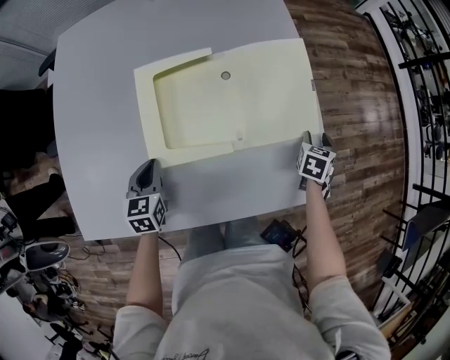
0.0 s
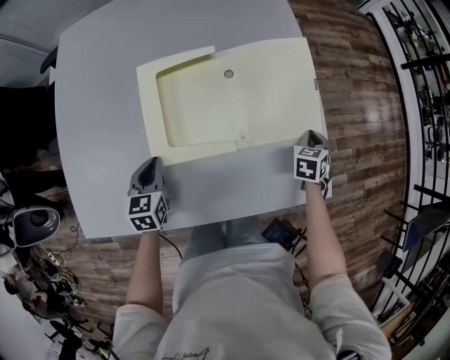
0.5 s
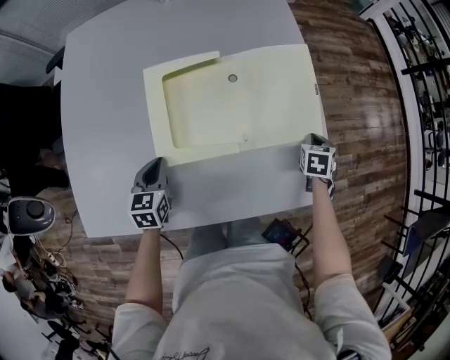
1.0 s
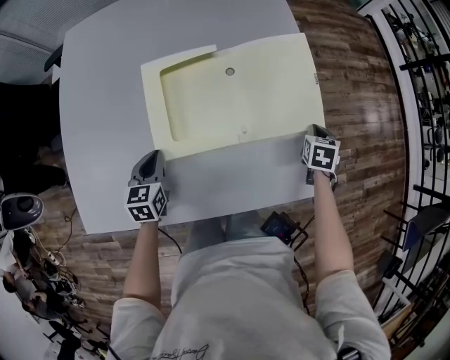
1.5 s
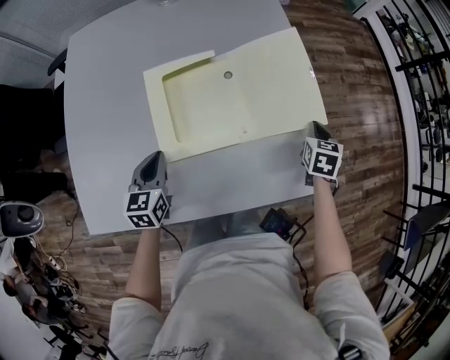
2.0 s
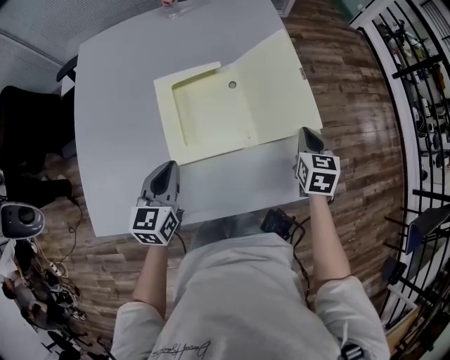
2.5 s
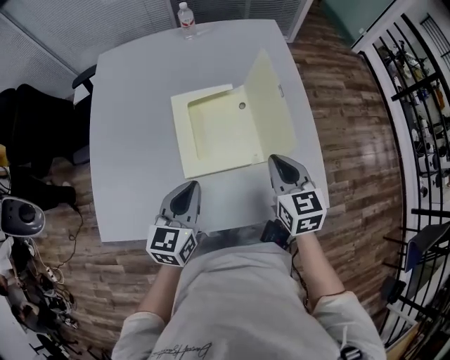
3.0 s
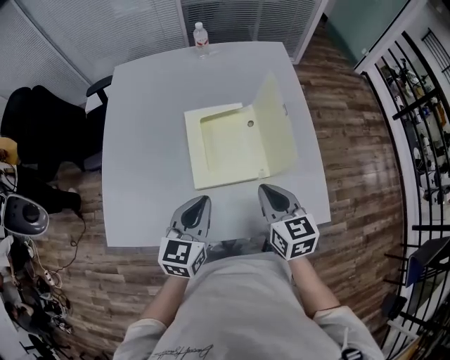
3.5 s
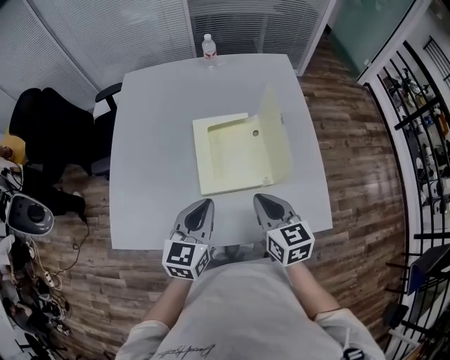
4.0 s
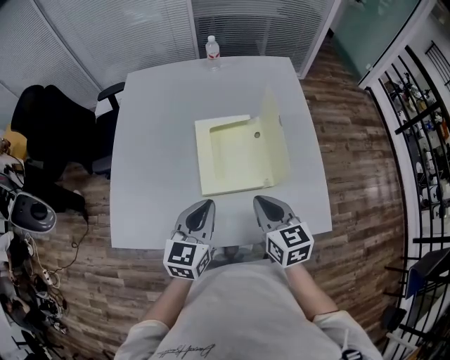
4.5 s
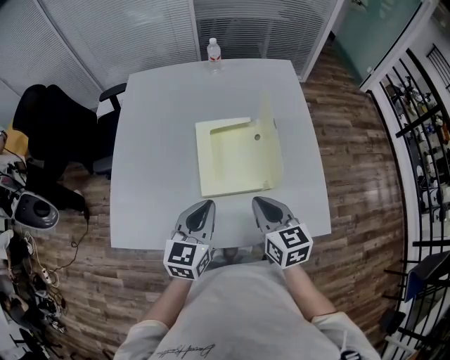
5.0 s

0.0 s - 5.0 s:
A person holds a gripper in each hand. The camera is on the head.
0.0 s - 2.5 s: The left gripper heads upward, covering approximately 10 cm; the right gripper heads upward and to the left, covering some 15 cm, changes its angle by some 20 degrees, and closes.
2.5 s - 5.0 s: The right gripper shifts about 20 cm to the left, and swivels approximately 30 degrees, while the left gripper moves upward, roughly 10 cm.

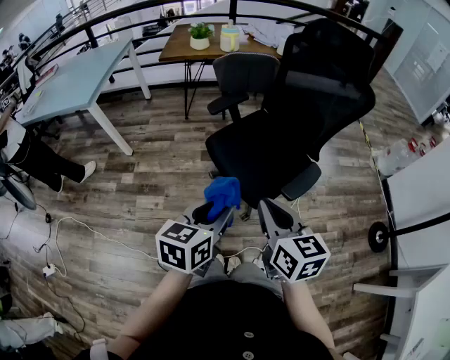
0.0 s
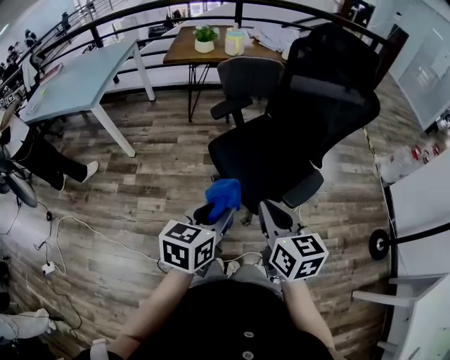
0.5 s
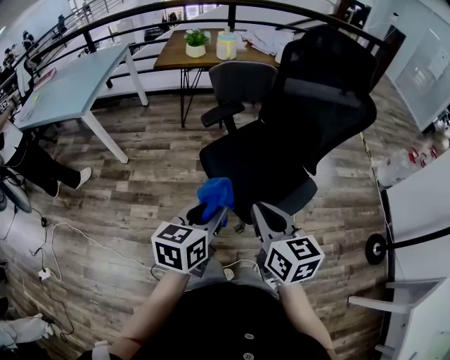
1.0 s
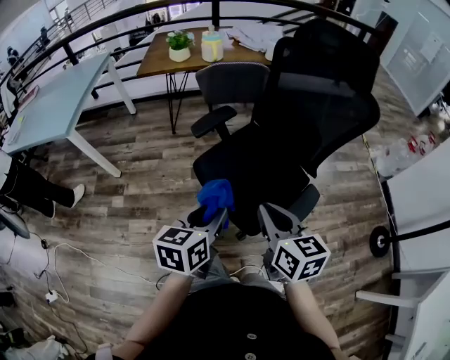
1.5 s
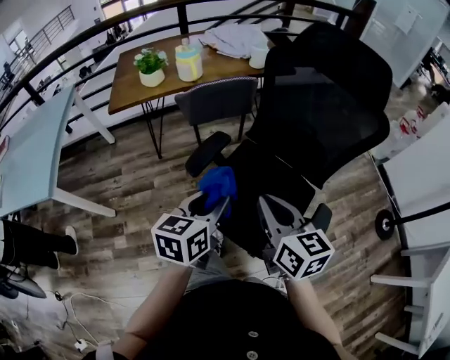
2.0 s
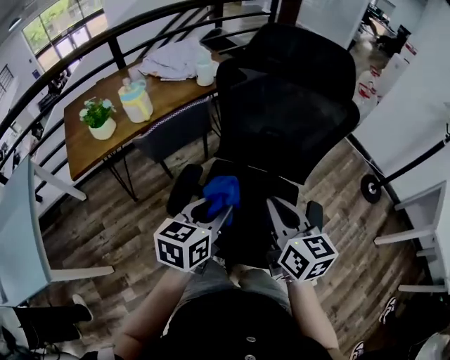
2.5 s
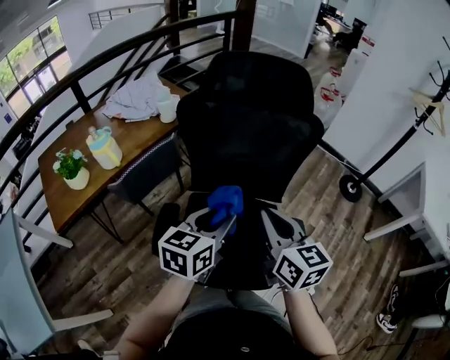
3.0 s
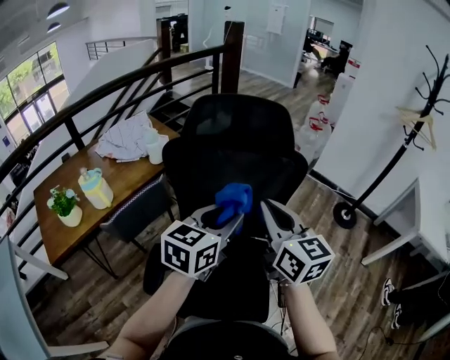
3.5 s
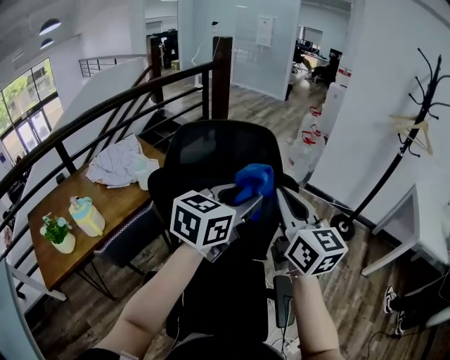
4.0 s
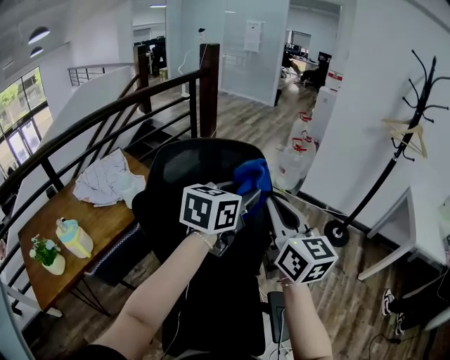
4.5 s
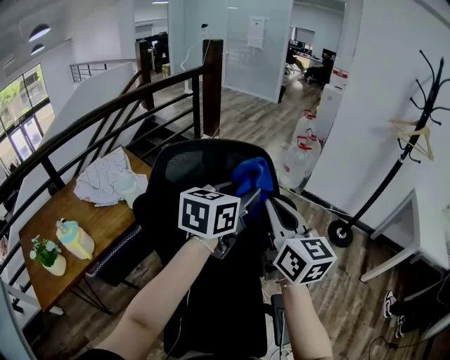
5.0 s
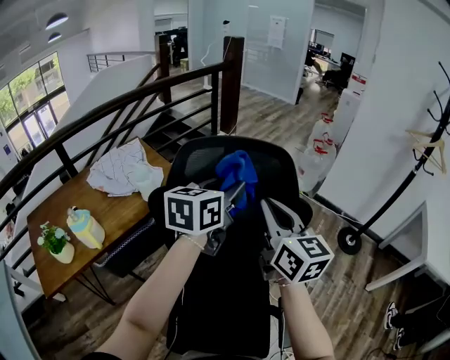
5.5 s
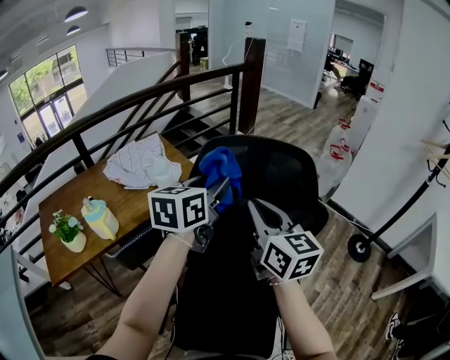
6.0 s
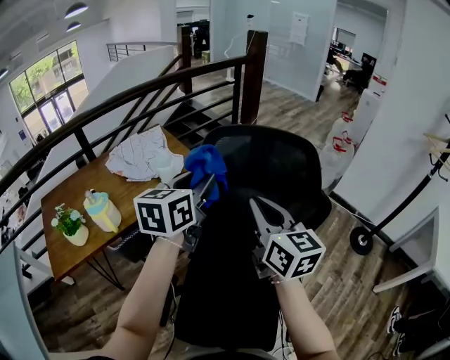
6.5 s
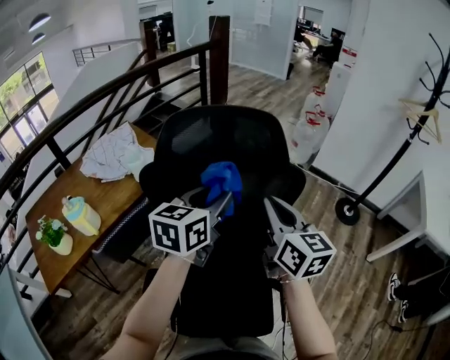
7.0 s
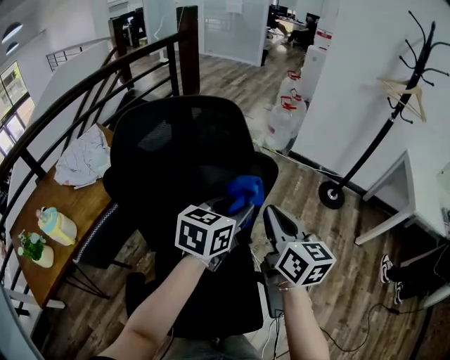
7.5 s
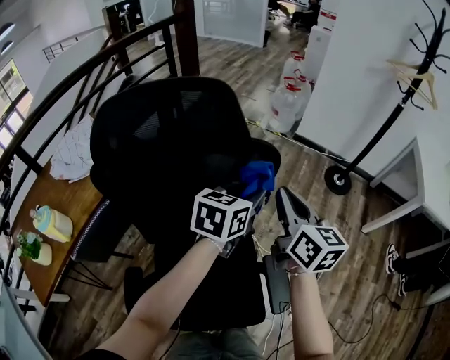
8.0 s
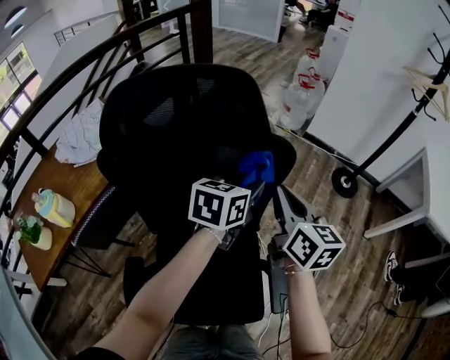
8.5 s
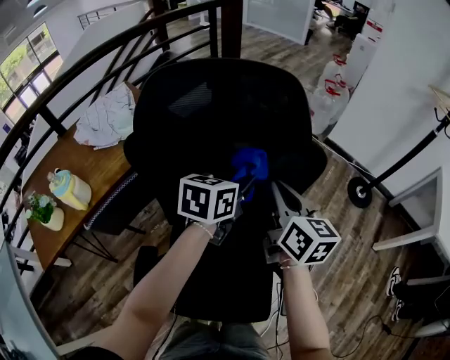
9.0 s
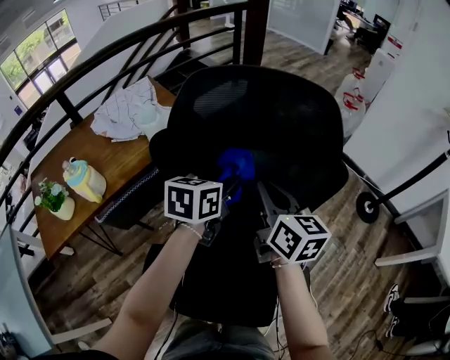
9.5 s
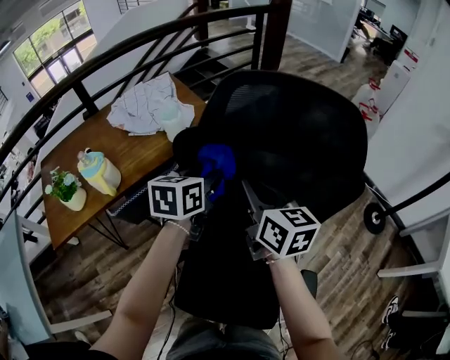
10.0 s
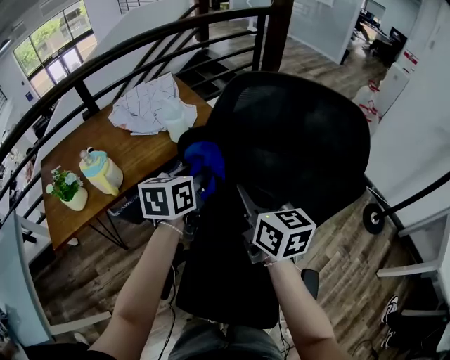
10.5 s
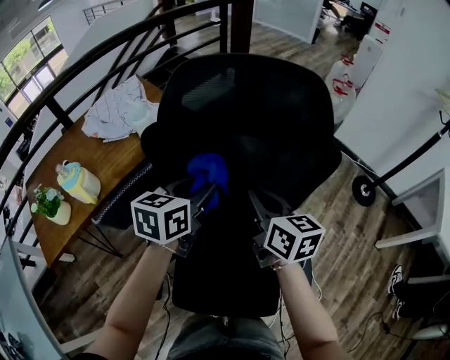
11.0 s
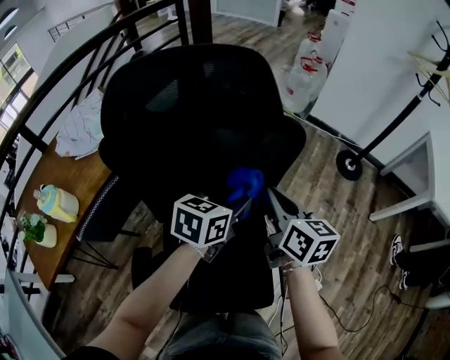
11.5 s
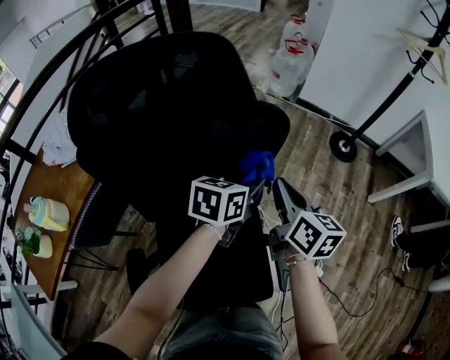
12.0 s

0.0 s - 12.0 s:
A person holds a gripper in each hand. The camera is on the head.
0.0 s - 2.0 s: Both grippers travel together forward, about 35 cm.
2.0 s - 4.0 s: The right gripper shifts by approximately 40 cm, and turns by approximately 50 degrees. Meanwhile the left gripper changes place by about 40 cm, and swivels some 60 degrees.
4.0 s - 6.0 s: The right gripper heads to the left, covering some 15 cm, while the left gripper is displaced to the left and forward by about 20 cm, and swivels approximately 30 degrees.
6.0 s - 8.0 s: The right gripper shifts by about 30 cm, and changes its angle by approximately 30 degrees; the left gripper changes place by some 35 cm, and turns by approximately 30 degrees.
8.0 s - 10.0 s: The right gripper changes place by approximately 30 cm, and swivels some 30 degrees. Meanwhile the left gripper moves approximately 35 cm, and turns by roughly 30 degrees.
10.0 s - 12.0 s: The right gripper shifts by approximately 30 cm, and changes its angle by about 40 degrees, while the left gripper changes place by about 35 cm, and rotates about 40 degrees.

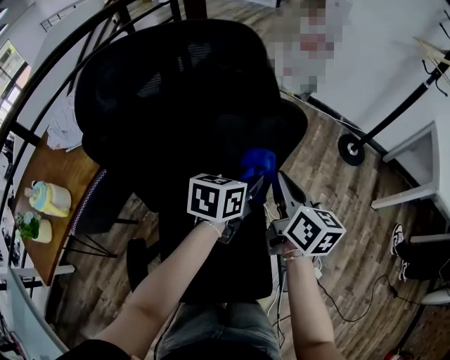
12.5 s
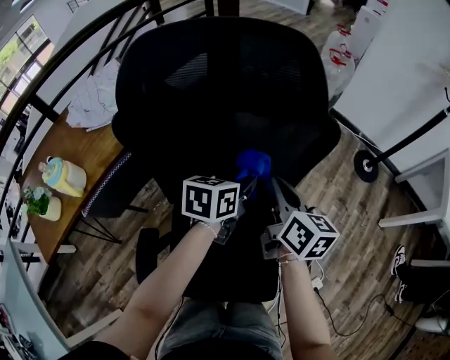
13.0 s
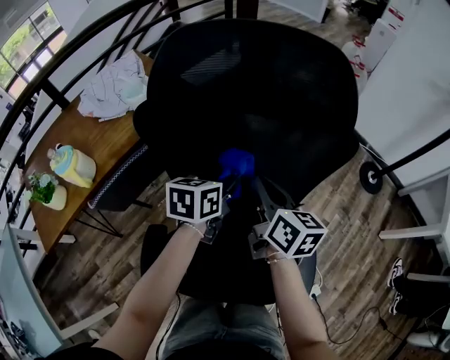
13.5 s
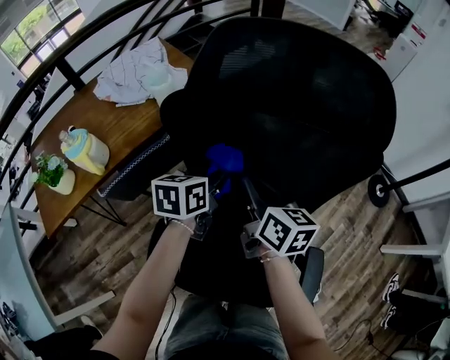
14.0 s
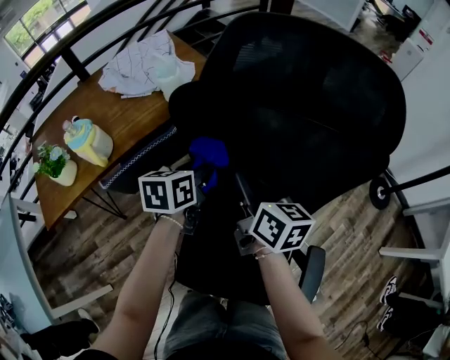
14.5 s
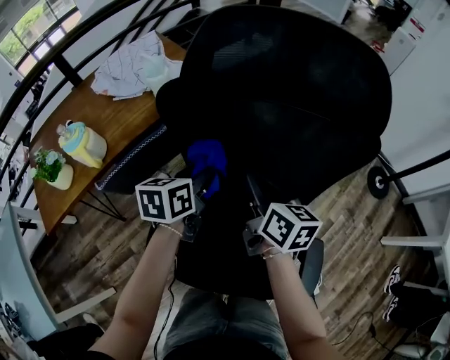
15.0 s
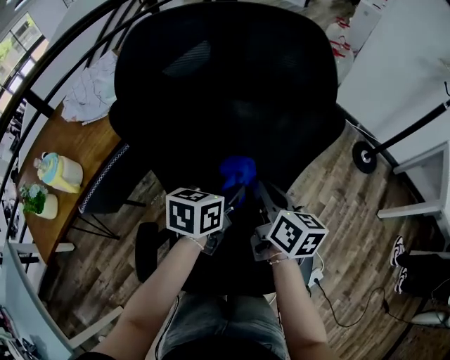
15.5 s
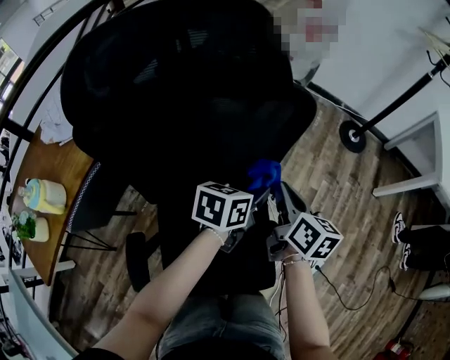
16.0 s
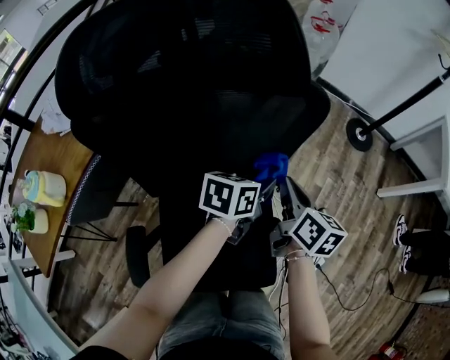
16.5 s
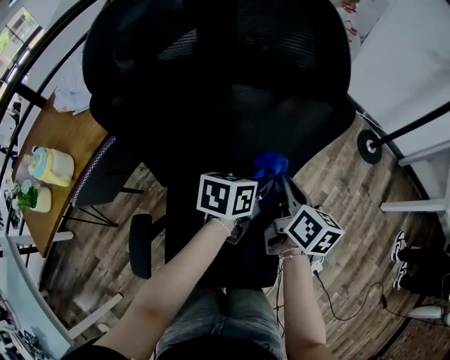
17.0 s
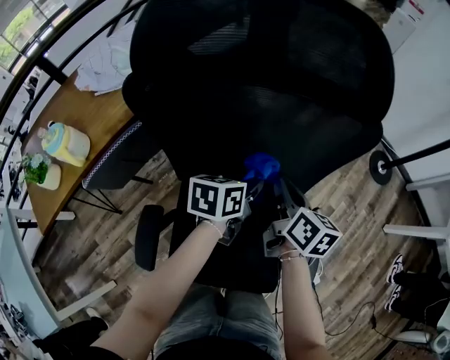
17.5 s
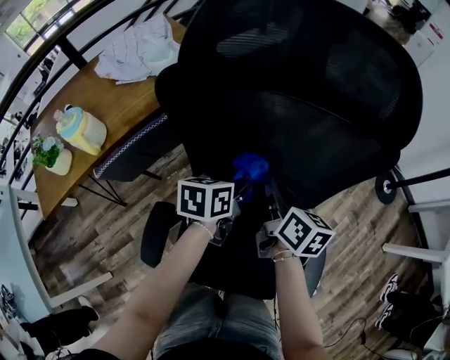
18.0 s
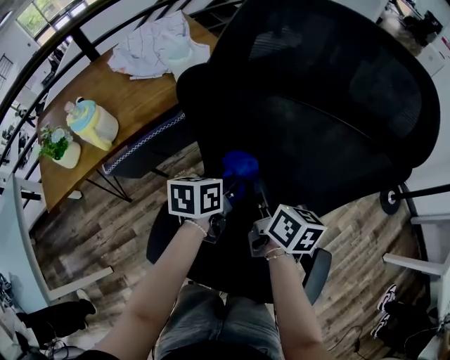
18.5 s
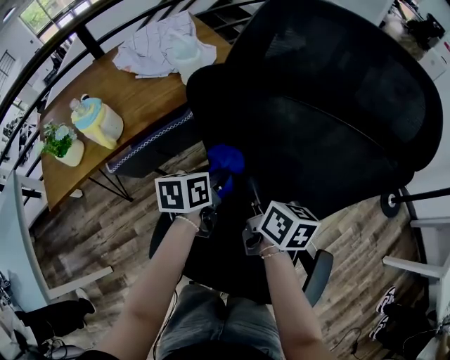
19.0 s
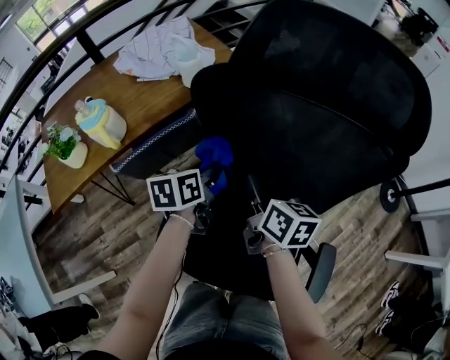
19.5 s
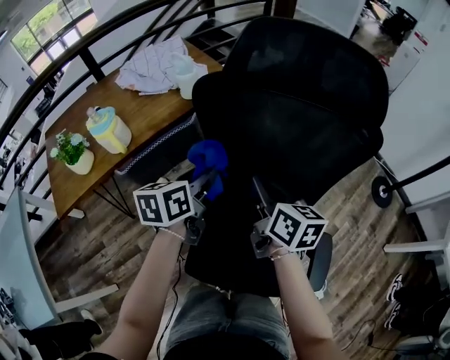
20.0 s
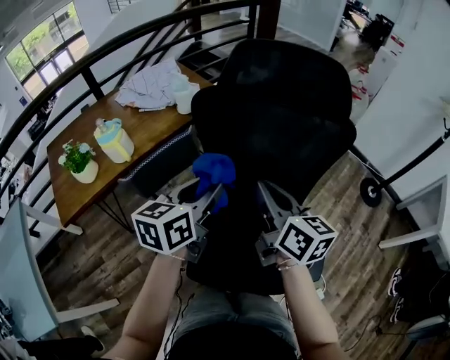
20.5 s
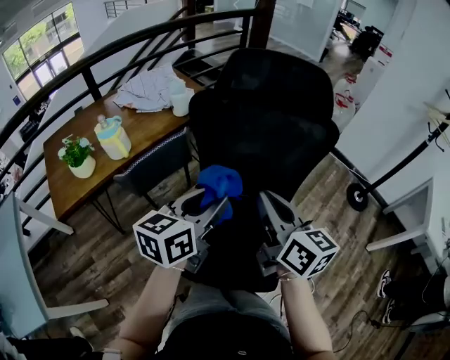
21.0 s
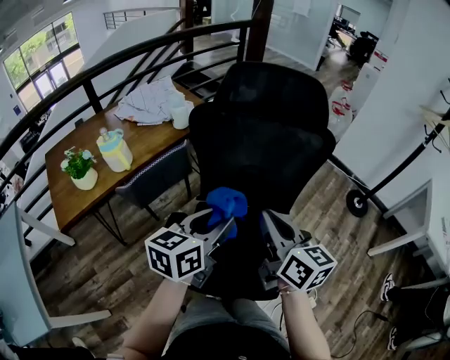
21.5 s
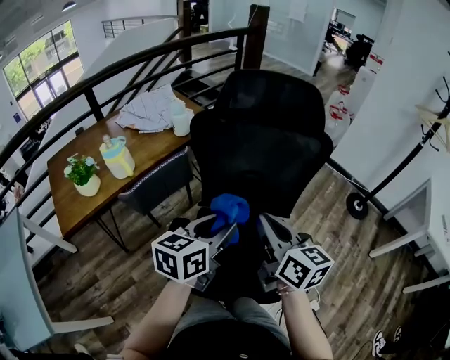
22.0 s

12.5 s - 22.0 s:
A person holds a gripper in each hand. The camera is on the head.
12.5 s - 14.5 s: The right gripper changes place by approximately 30 cm, and swivels approximately 30 degrees, while the left gripper changes place by roughly 35 cm, and swivels some 30 degrees.
14.5 s - 16.5 s: The right gripper moves roughly 30 cm, and changes its angle by roughly 30 degrees. Meanwhile the left gripper moves approximately 35 cm, and swivels about 40 degrees.
16.5 s - 18.0 s: The right gripper moves about 20 cm, and swivels approximately 20 degrees. Meanwhile the left gripper moves roughly 20 cm, and rotates approximately 30 degrees.
18.0 s - 20.0 s: The right gripper heads to the left, upward and backward, covering approximately 15 cm; the left gripper travels to the left and upward by about 20 cm.
20.0 s - 22.0 s: The left gripper moves backward, to the right and upward, approximately 20 cm, and rotates roughly 20 degrees. The right gripper heads backward and upward, covering about 20 cm.
